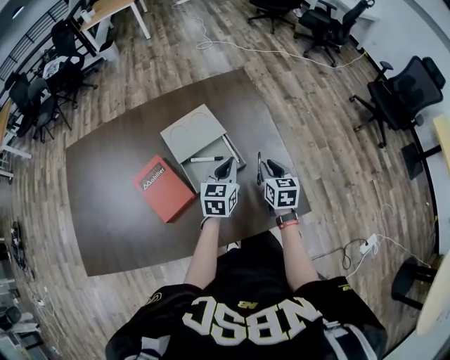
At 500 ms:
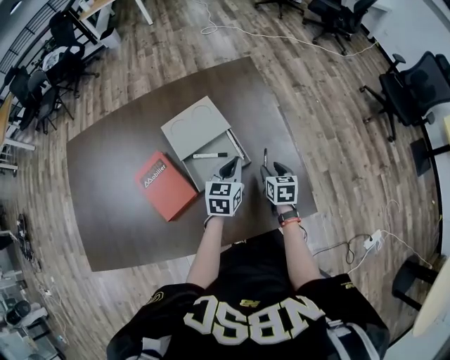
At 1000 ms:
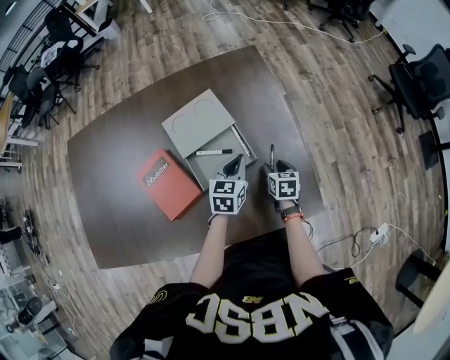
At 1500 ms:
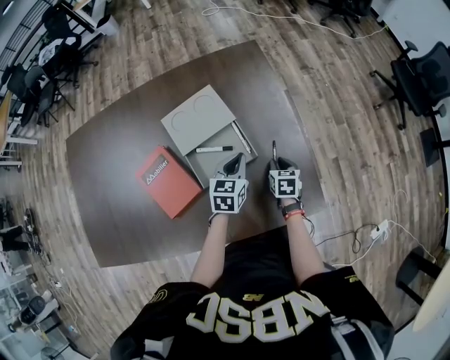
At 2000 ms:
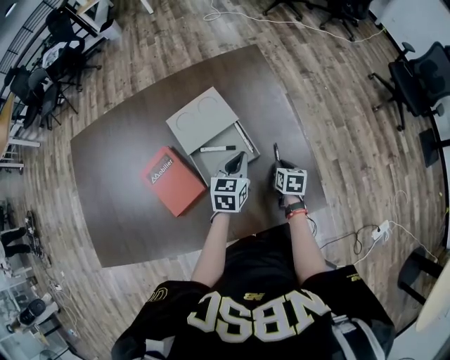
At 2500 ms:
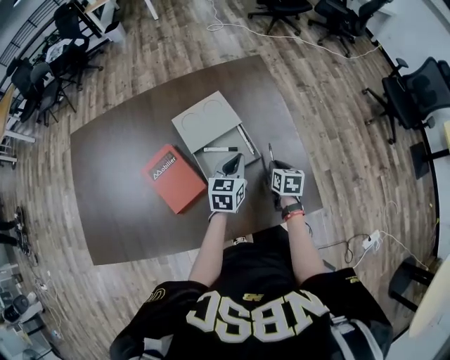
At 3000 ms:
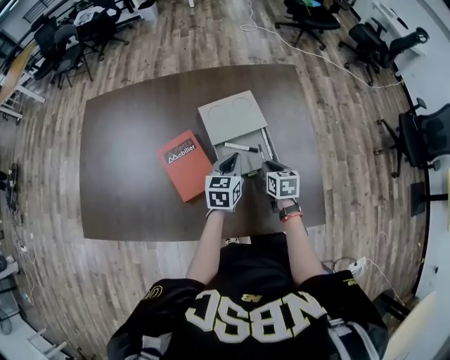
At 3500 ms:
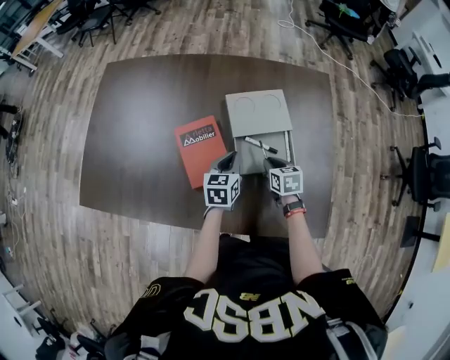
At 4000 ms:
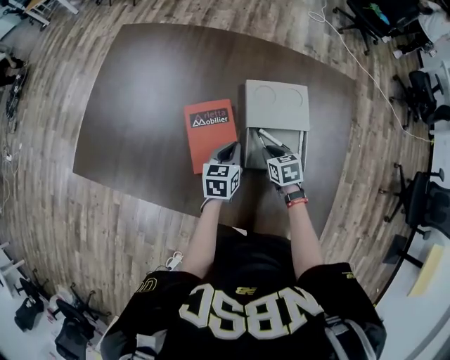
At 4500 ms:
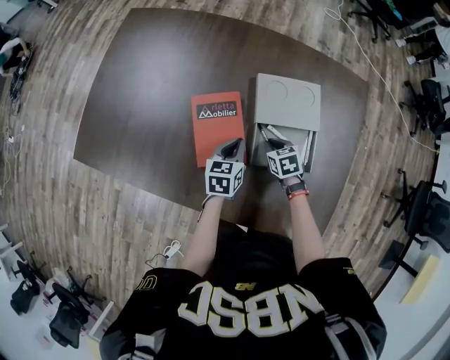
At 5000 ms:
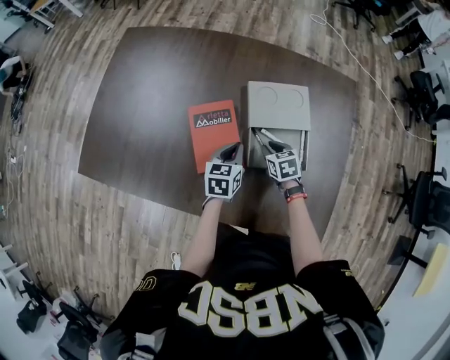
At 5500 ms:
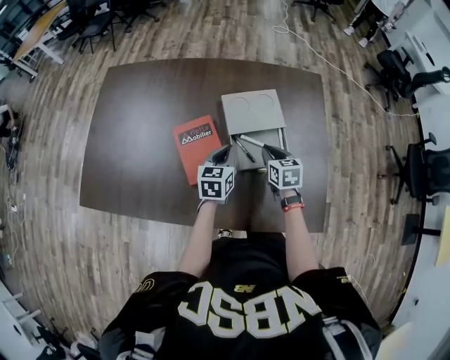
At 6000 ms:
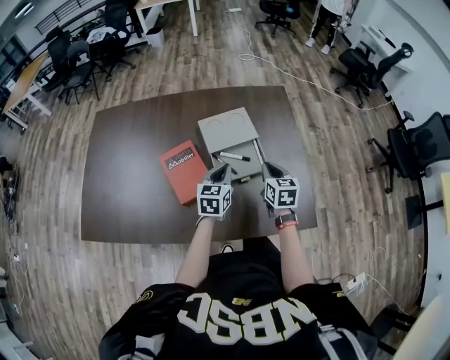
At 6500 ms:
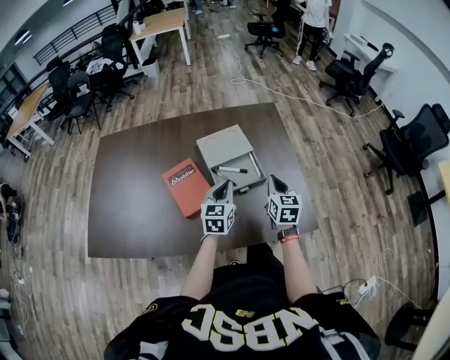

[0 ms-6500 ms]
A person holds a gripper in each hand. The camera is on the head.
0 ms to 2000 ms: The right gripper moves downward, some 15 cm, turns by some 20 degrees, and opens and closes again, while the left gripper heads downward, covering approximately 5 cm.
2000 ms to 4500 ms: The left gripper moves some 25 cm, and turns by about 40 degrees, while the right gripper shifts by roughly 25 cm, and rotates around the line of its fingers by some 50 degrees, counterclockwise from behind.
4500 ms to 6500 ms: The right gripper is displaced upward by about 20 cm, and tilts its fingers approximately 40 degrees upward; the left gripper shifts approximately 15 cm upward, and turns by about 30 degrees.

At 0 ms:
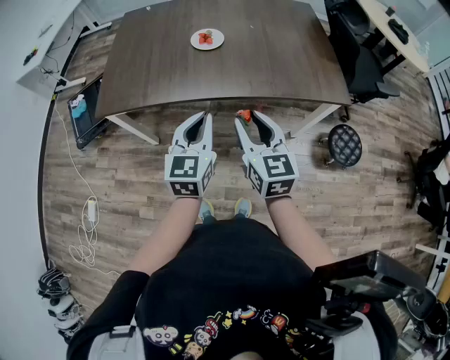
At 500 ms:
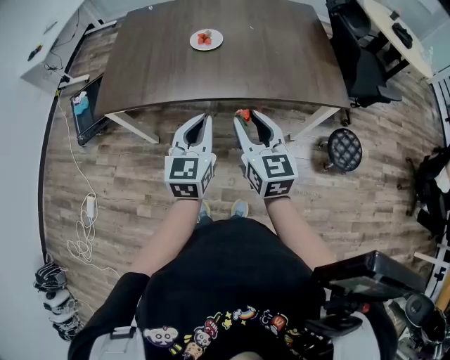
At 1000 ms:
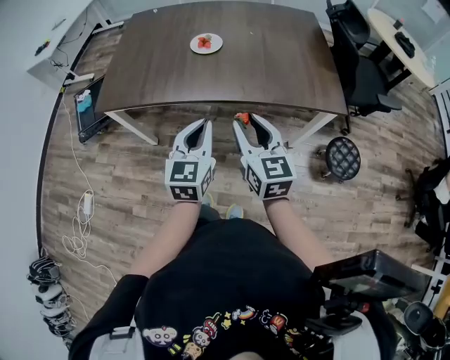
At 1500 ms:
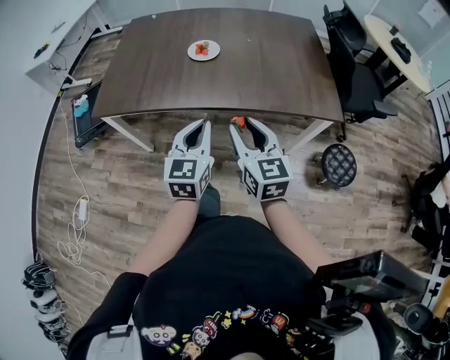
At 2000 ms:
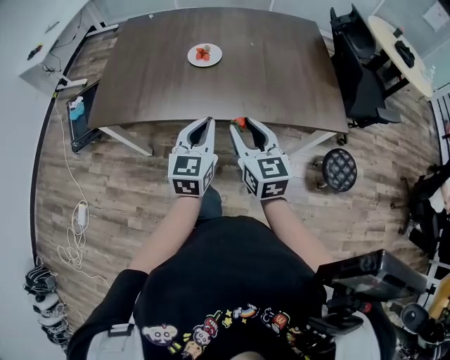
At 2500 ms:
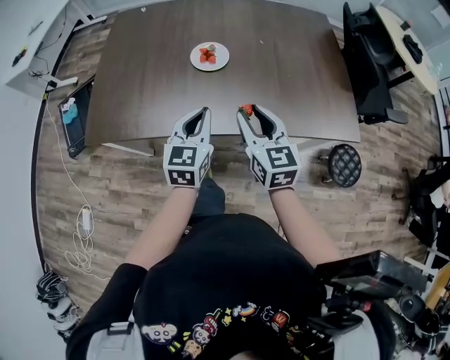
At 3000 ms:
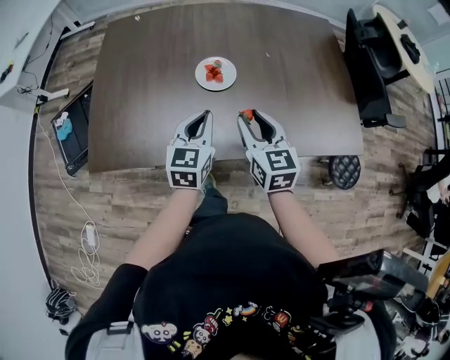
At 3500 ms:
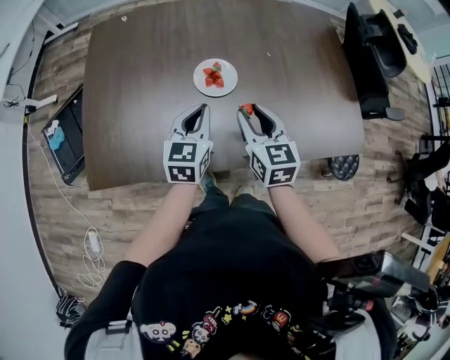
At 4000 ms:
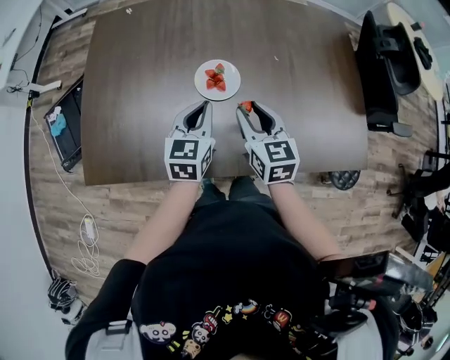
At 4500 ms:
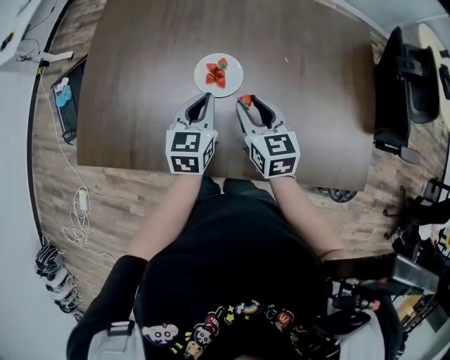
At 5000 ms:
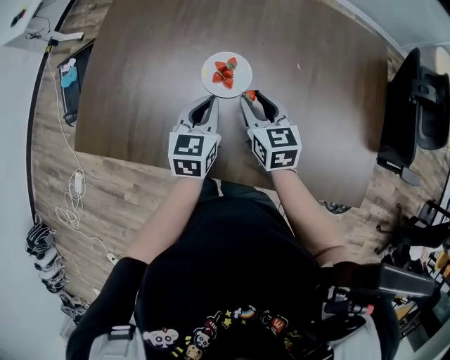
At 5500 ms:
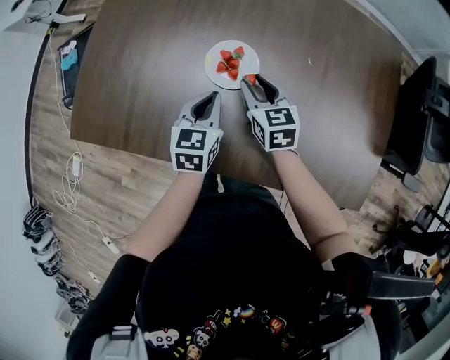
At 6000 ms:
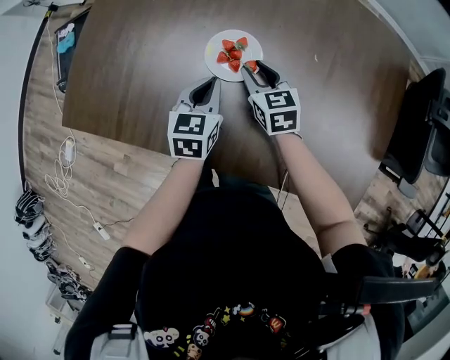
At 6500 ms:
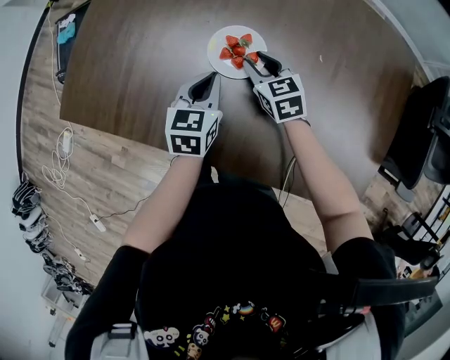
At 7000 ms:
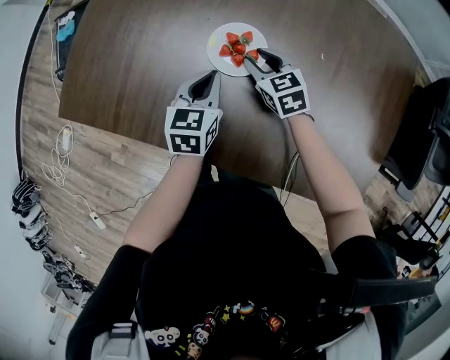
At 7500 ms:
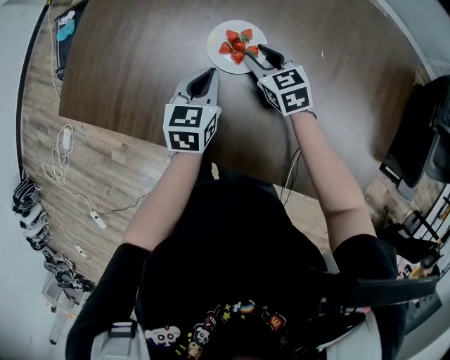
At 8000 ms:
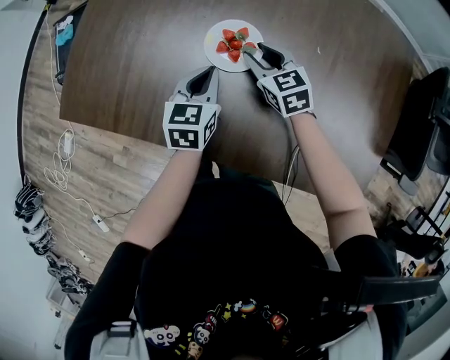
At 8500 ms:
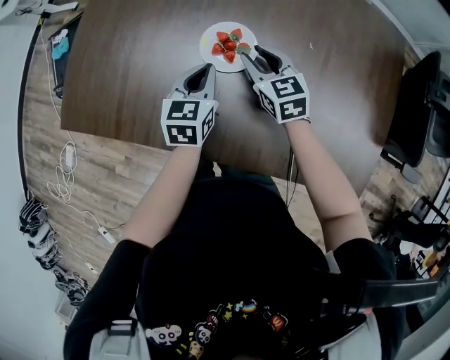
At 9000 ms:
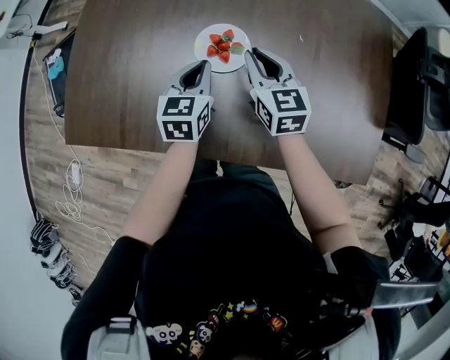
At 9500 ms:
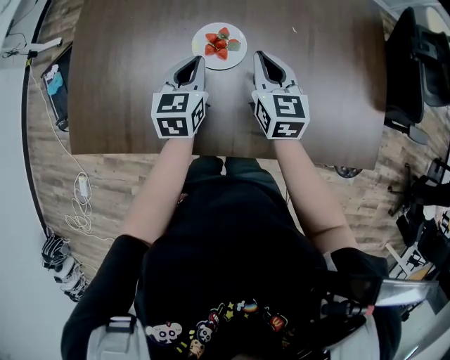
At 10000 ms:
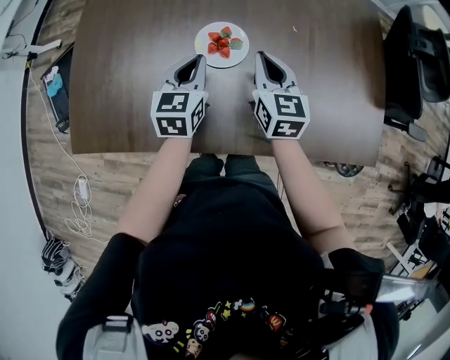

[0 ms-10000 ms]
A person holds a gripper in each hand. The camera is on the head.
0 ms to 2000 ms: The two grippers go some 5 cm forward.
2000 ms to 4000 ms: Both grippers move forward, some 30 cm.
4000 ms to 6000 ms: The right gripper shifts approximately 20 cm downward and forward, and swivels approximately 30 degrees. Meanwhile the left gripper goes approximately 10 cm downward, and rotates some 20 degrees.
6000 ms to 8000 ms: The grippers stay close to where they were, moving slightly.
8000 ms to 10000 ms: The left gripper heads upward, covering some 5 cm. The right gripper travels upward by about 10 cm, turns by some 40 degrees, and closes.

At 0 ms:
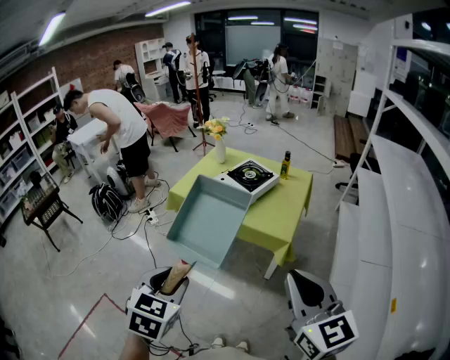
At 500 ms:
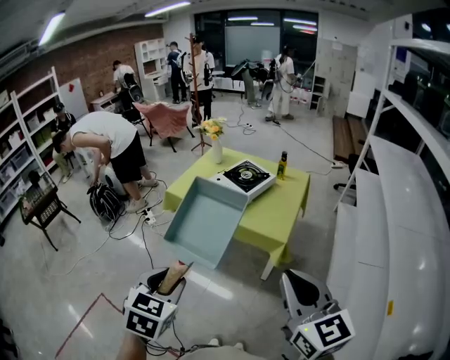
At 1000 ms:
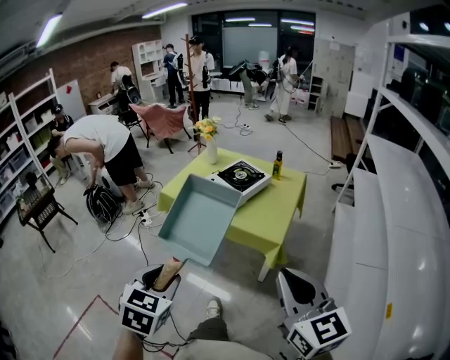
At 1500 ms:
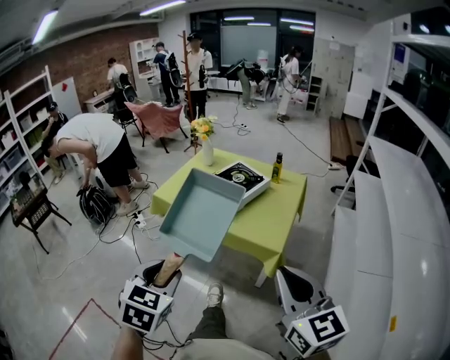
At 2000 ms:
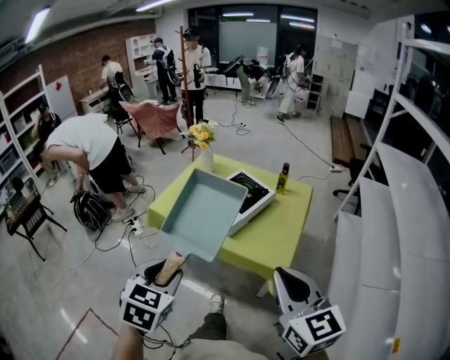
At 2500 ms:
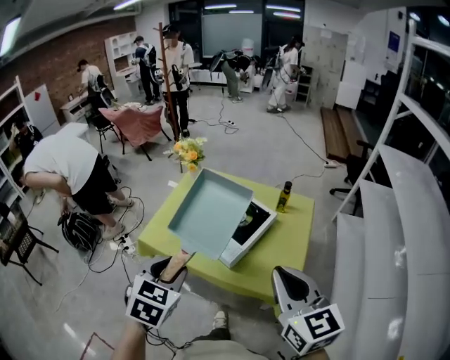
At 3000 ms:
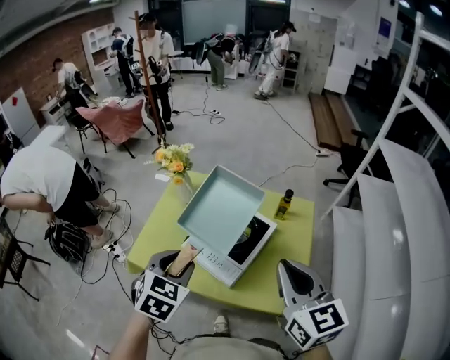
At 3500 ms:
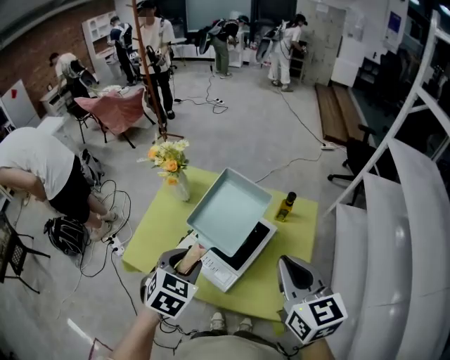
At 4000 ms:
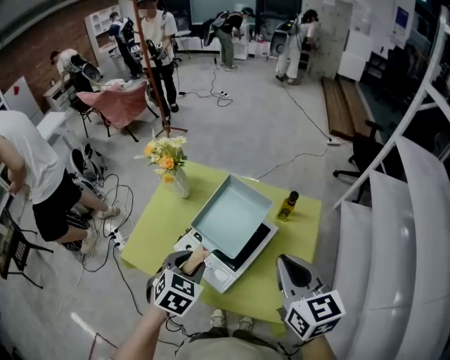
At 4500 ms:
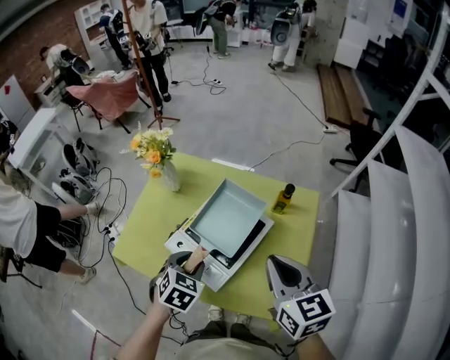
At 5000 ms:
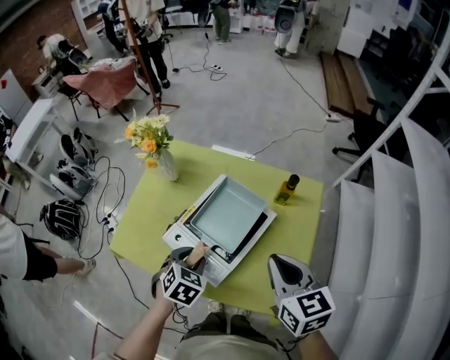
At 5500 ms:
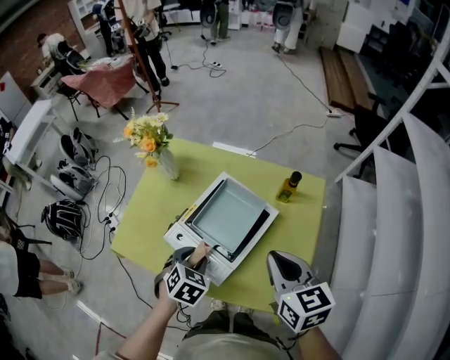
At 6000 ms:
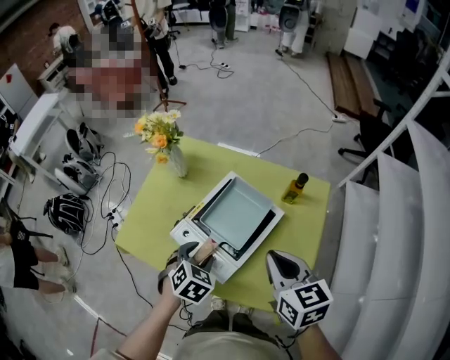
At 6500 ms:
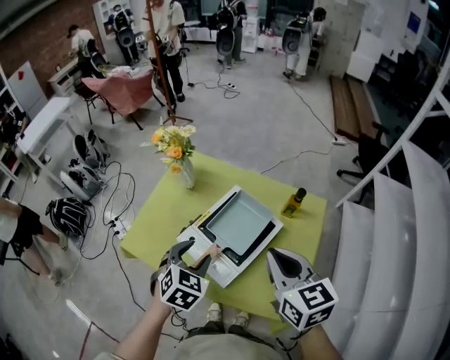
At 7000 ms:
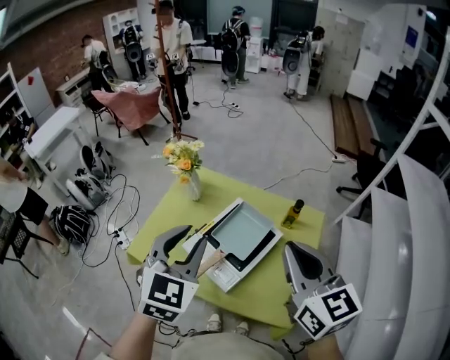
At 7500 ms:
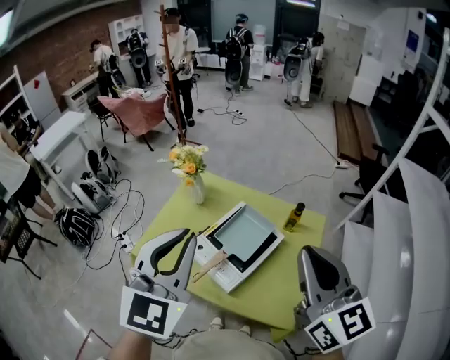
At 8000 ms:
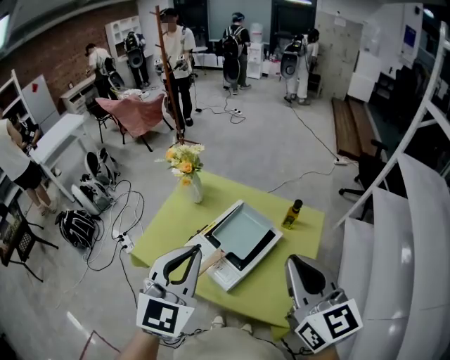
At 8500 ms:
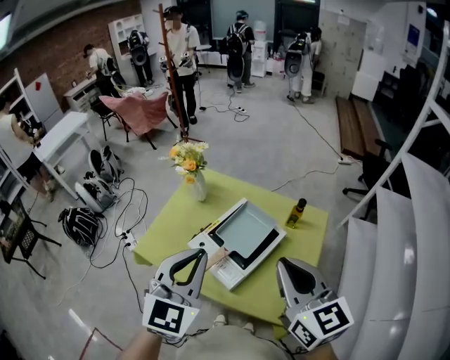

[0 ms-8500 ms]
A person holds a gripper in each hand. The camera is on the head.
0 ms to 2000 ms: The two grippers go some 20 cm forward.
2000 ms to 4000 ms: The two grippers travel together, forward, about 40 cm.
4000 ms to 6500 ms: The left gripper goes downward and returns, about 10 cm each way; the right gripper moves approximately 10 cm downward and comes back.
6500 ms to 8500 ms: The right gripper travels upward and backward by roughly 10 cm; the left gripper is displaced upward by some 20 cm, points its fingers about 40 degrees further upward, and closes.

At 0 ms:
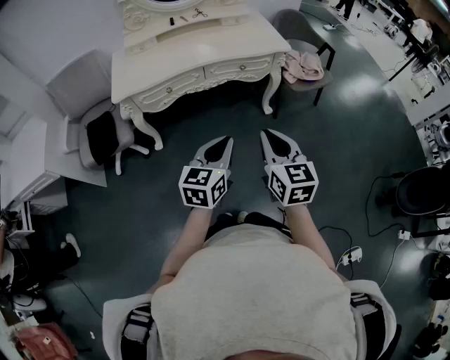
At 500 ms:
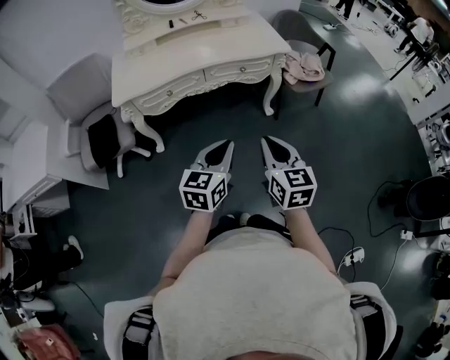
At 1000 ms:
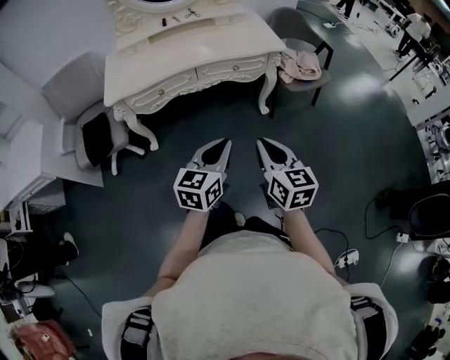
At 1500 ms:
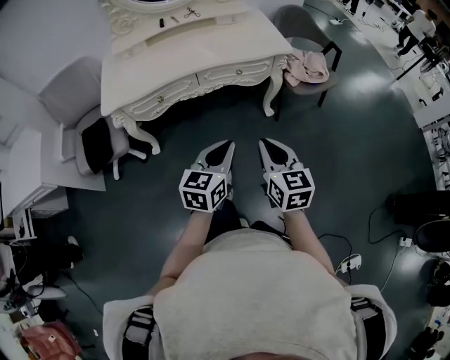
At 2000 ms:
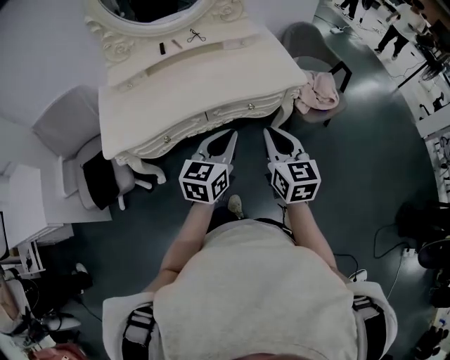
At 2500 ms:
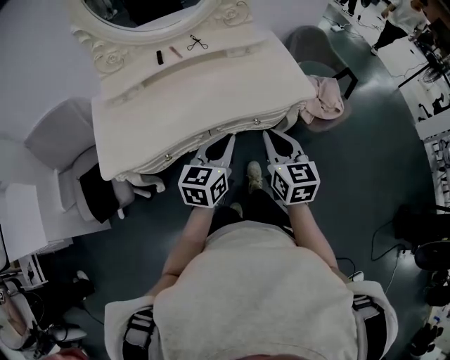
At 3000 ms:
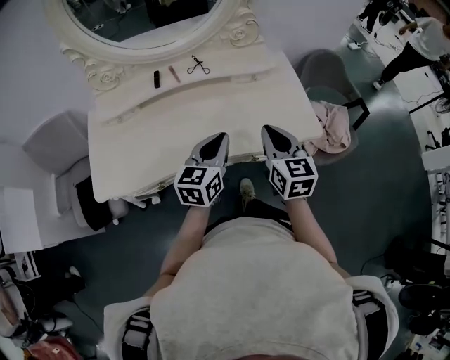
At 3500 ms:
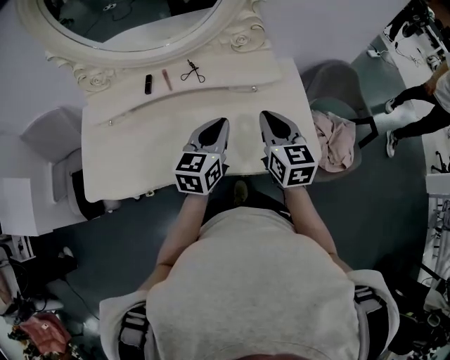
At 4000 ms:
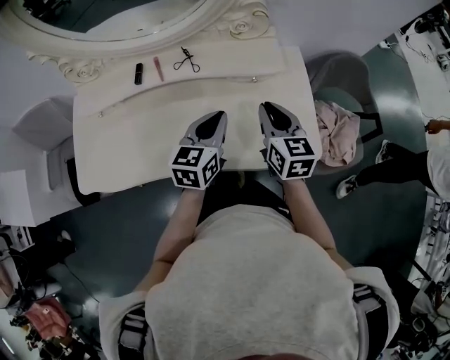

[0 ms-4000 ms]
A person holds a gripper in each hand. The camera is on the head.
0 ms to 2000 ms: The grippers both shift forward by roughly 30 cm.
2000 ms to 4000 ms: Both grippers travel together forward, some 40 cm.
